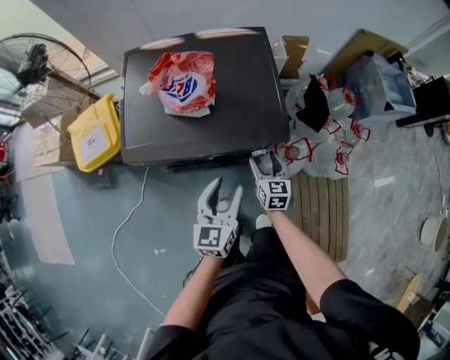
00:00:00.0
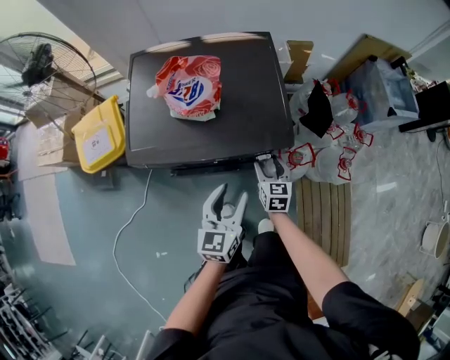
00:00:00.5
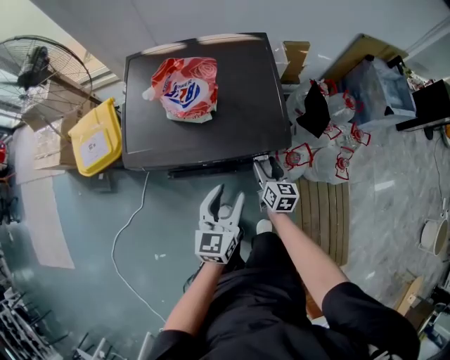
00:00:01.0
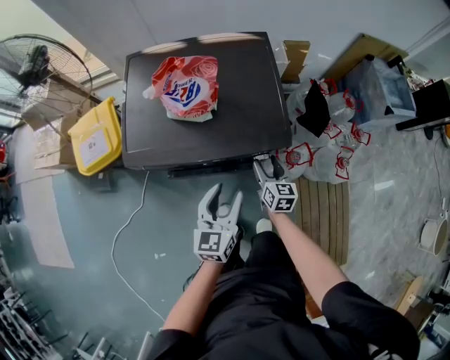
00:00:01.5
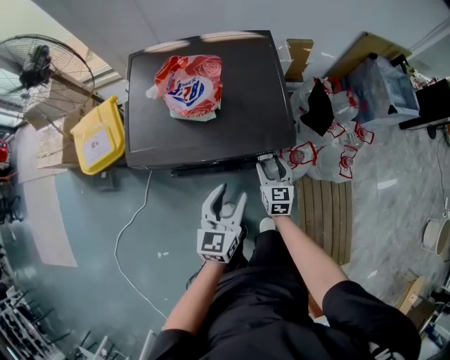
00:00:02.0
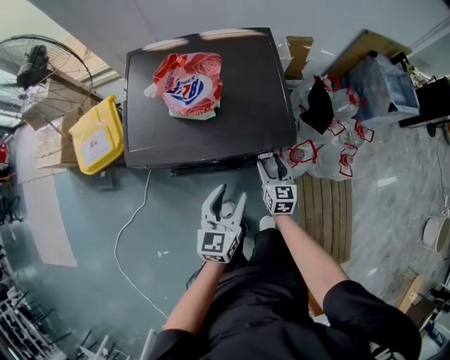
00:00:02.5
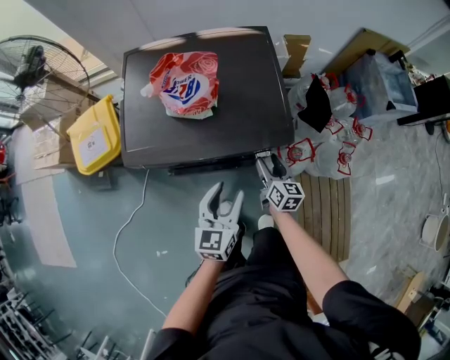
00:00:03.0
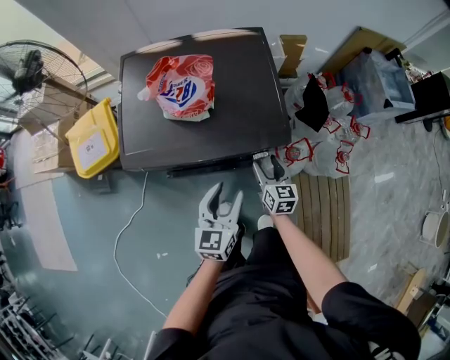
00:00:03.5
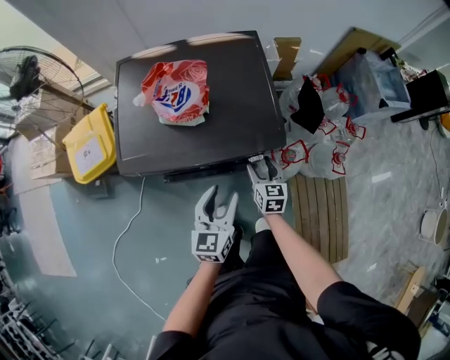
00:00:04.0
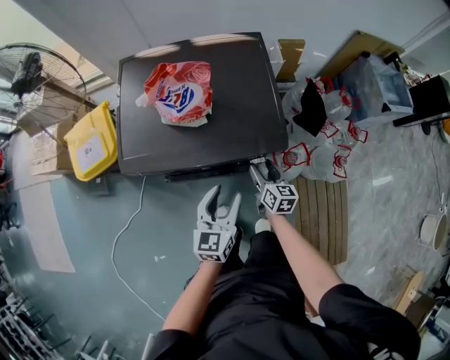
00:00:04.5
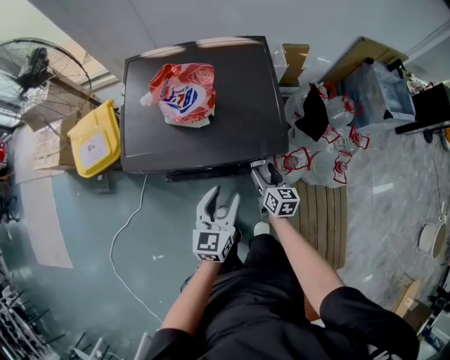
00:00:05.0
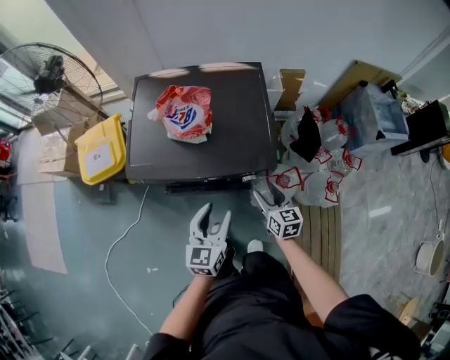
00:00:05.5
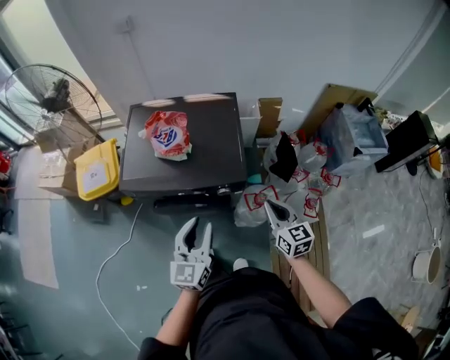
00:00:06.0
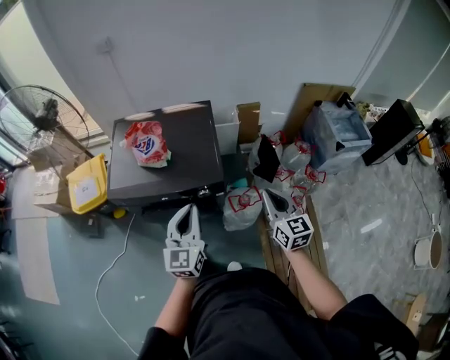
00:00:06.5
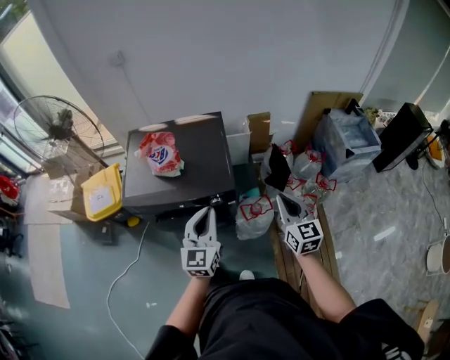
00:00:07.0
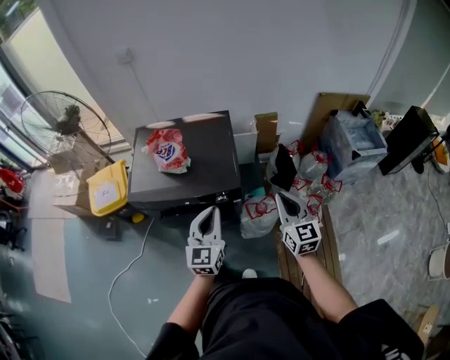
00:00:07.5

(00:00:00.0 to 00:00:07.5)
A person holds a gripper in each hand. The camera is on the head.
00:00:00.0 - 00:00:02.0: The grippers stay close to where they were, moving slightly.
00:00:04.0 - 00:00:05.5: The right gripper heads upward, covering roughly 10 cm.
00:00:05.5 - 00:00:07.5: The right gripper heads upward and to the right, covering some 30 cm, turns by some 30 degrees, and closes its fingers. Meanwhile the left gripper is displaced upward and to the right by approximately 20 cm, and closes its fingers.

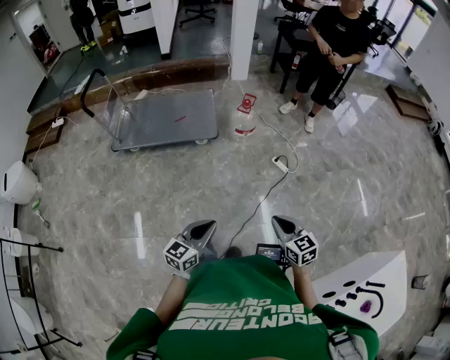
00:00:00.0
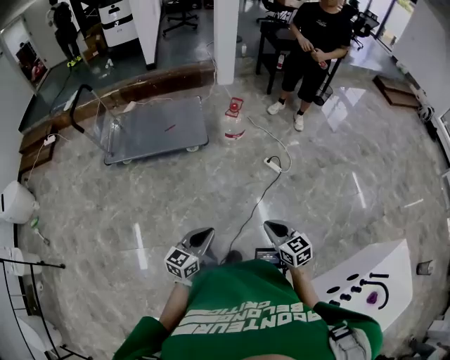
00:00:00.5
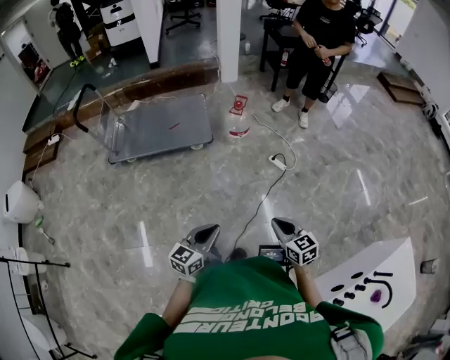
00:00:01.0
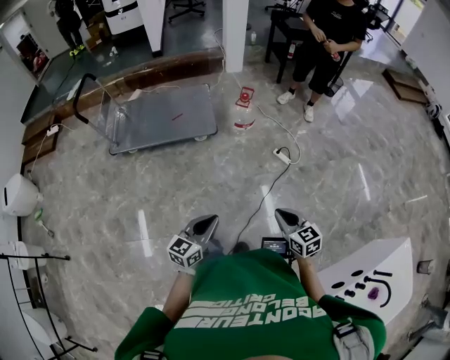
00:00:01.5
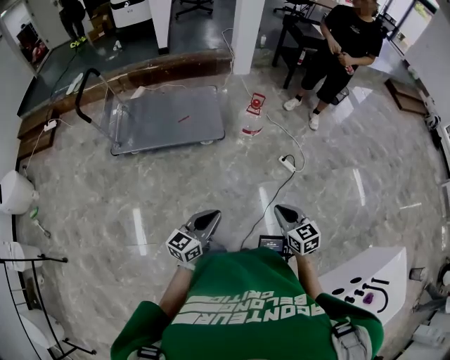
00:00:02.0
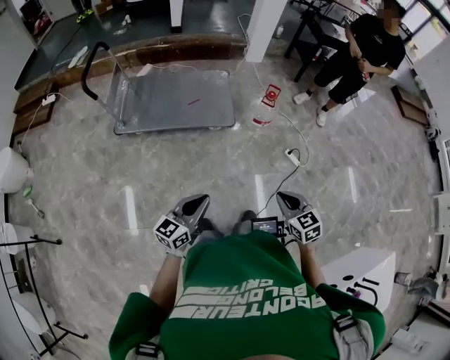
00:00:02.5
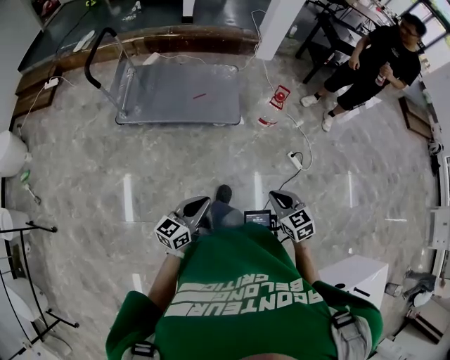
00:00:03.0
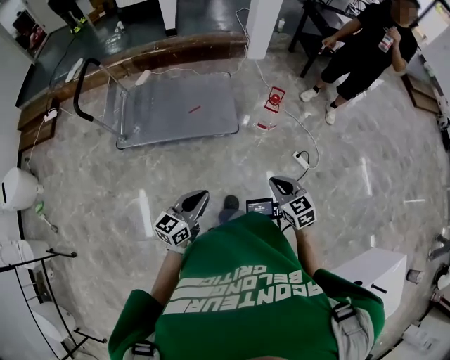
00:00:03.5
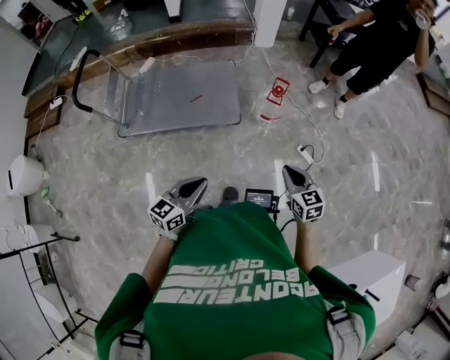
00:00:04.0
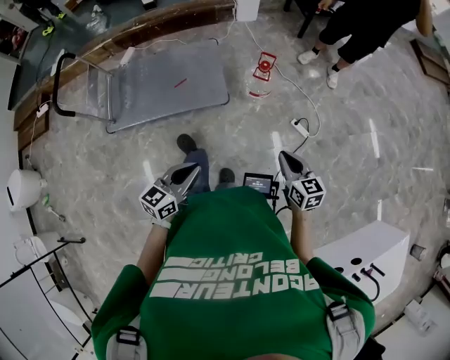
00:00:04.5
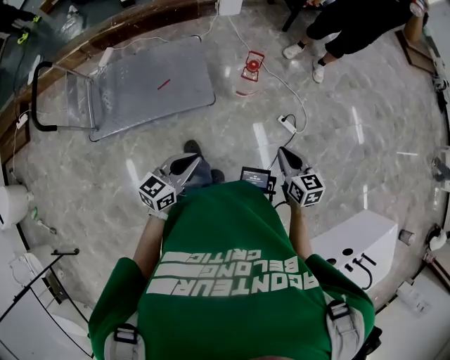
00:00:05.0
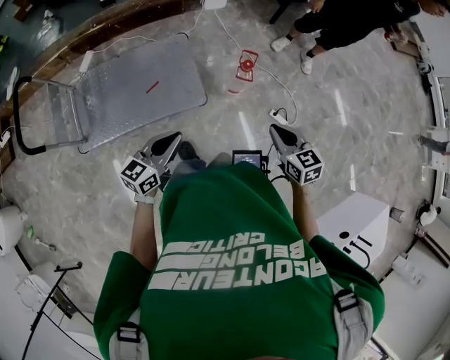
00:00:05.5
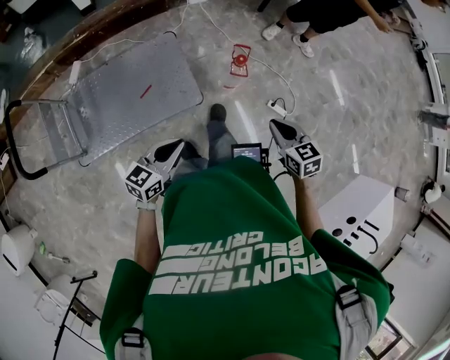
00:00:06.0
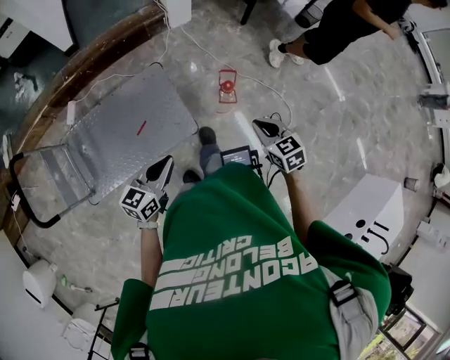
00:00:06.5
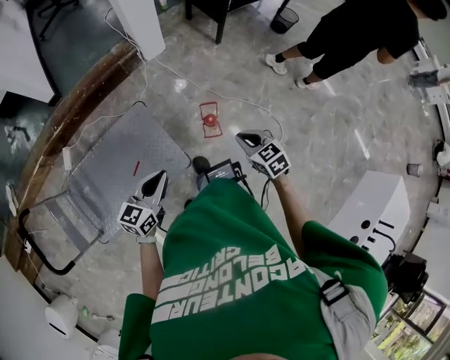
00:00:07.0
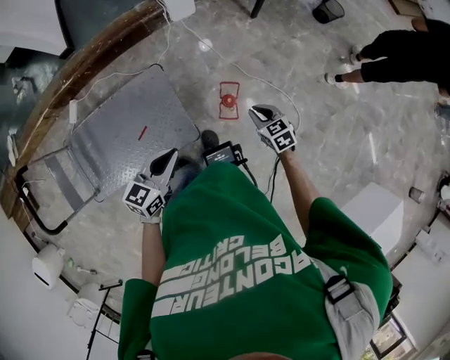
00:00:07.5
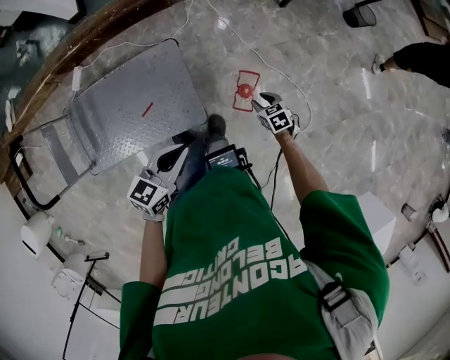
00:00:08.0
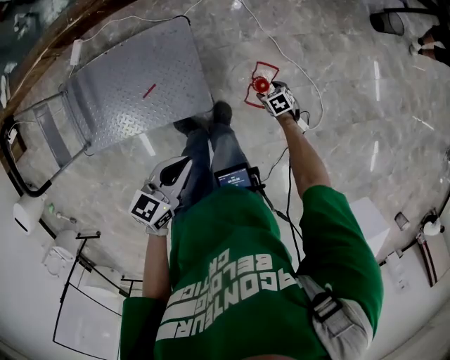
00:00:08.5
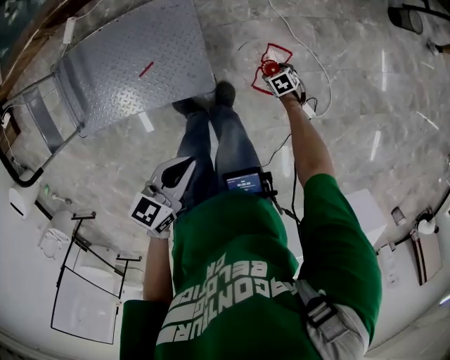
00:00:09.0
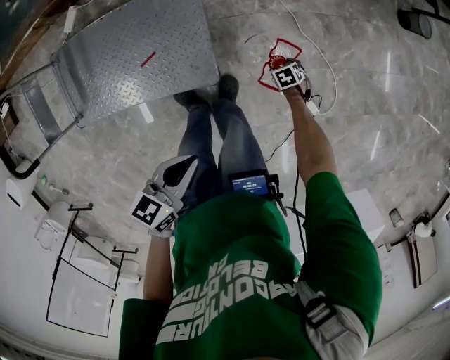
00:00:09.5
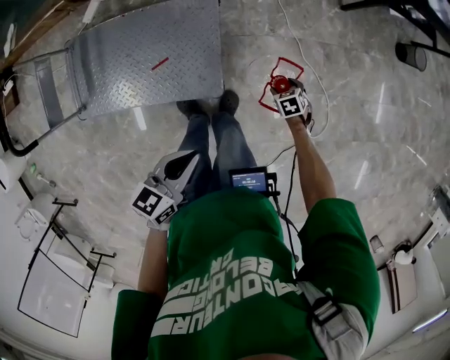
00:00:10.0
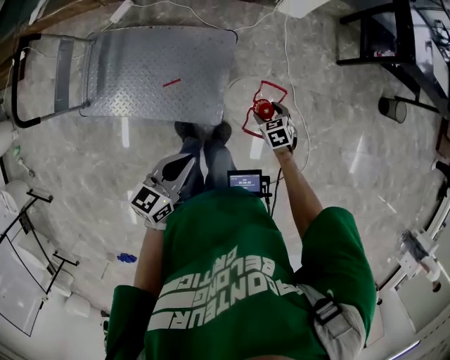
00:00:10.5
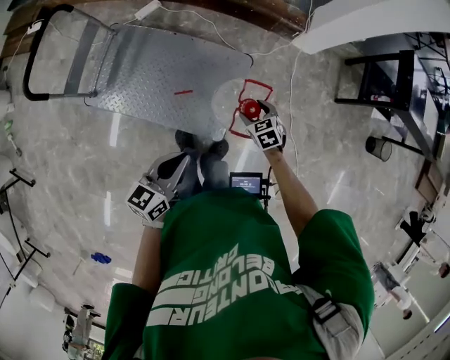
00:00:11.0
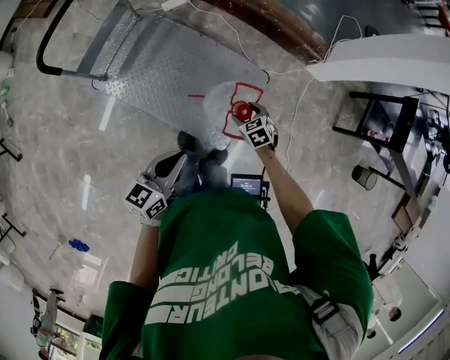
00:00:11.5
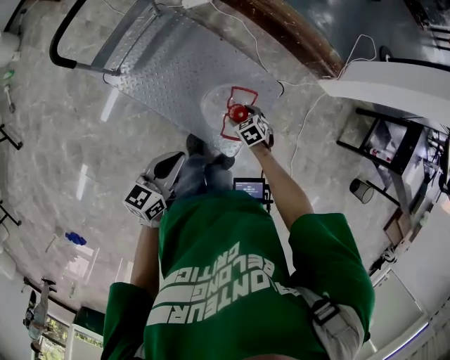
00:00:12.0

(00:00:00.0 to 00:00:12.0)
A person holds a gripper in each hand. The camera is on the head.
00:00:00.0 - 00:00:02.0: The two grippers go some 15 cm to the left and forward.
00:00:02.0 - 00:00:04.0: The two grippers go roughly 25 cm forward.
00:00:04.0 - 00:00:06.0: The grippers both shift forward and to the left by about 25 cm. The left gripper swivels approximately 20 degrees.
00:00:06.0 - 00:00:08.0: The left gripper is displaced forward by roughly 30 cm, while the right gripper goes some 50 cm forward and downward, turns by some 20 degrees, and opens.
00:00:08.0 - 00:00:10.0: The right gripper moves downward, roughly 15 cm, and opens up. The left gripper shifts about 10 cm downward, and turns by about 20 degrees.
00:00:10.0 - 00:00:12.0: The left gripper changes place by roughly 35 cm, and turns by some 40 degrees. The right gripper ends up about 50 cm from where it was, and twists some 40 degrees counterclockwise, seen from behind.

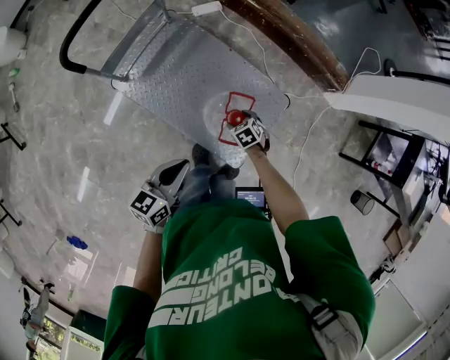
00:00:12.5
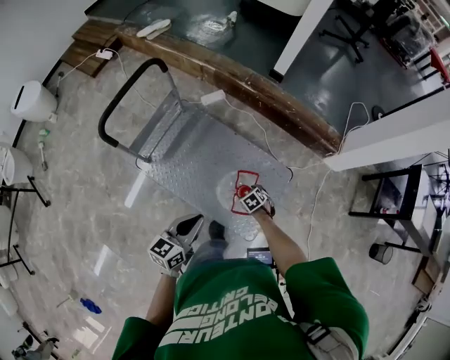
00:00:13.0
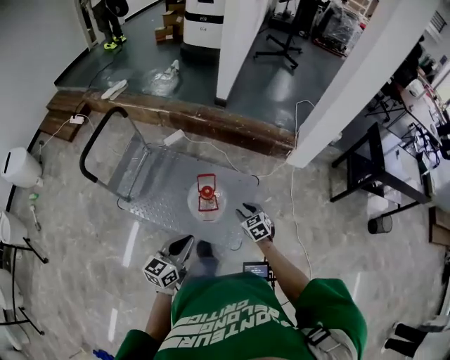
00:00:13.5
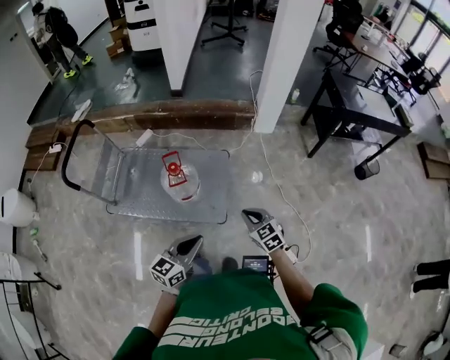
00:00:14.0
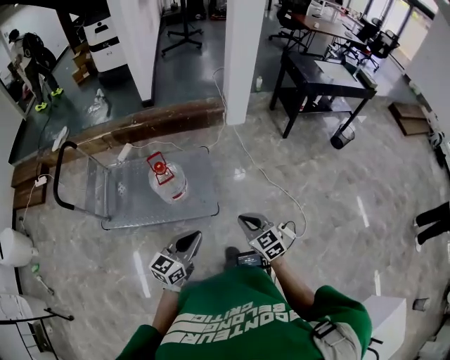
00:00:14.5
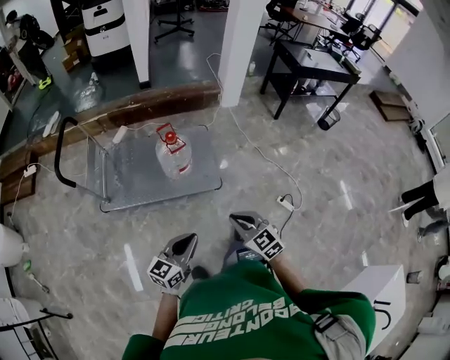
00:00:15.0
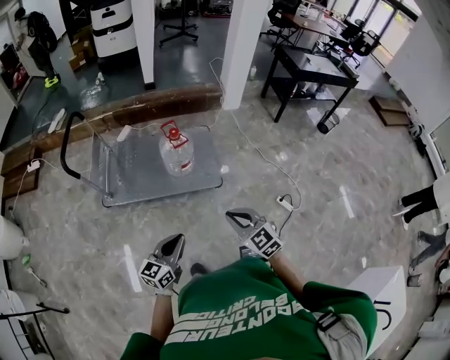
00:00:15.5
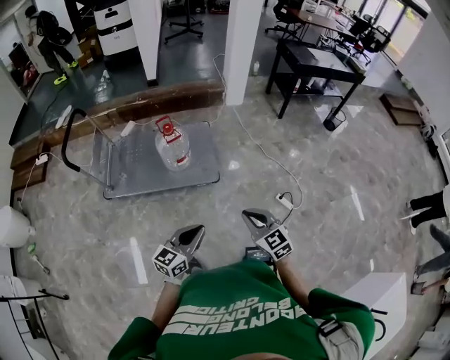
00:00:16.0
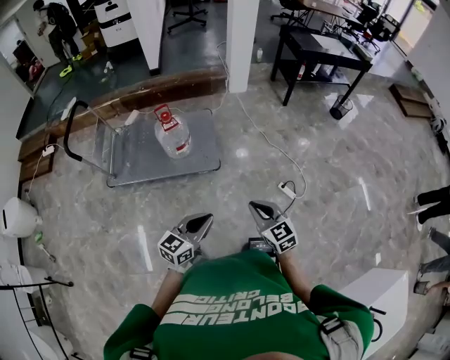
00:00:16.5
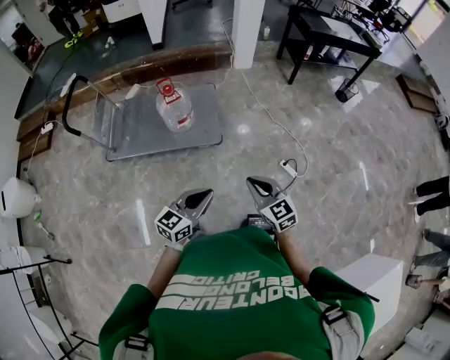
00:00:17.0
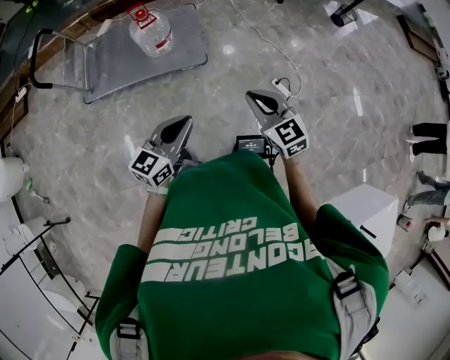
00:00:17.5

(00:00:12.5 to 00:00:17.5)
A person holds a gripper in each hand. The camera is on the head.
00:00:12.5 - 00:00:15.0: Both grippers are carried about 50 cm. The right gripper points its fingers approximately 40 degrees further upward, and closes its fingers; the left gripper rotates some 50 degrees.
00:00:15.0 - 00:00:17.5: The left gripper is displaced to the right and backward by roughly 20 cm, while the right gripper shifts approximately 20 cm to the right.

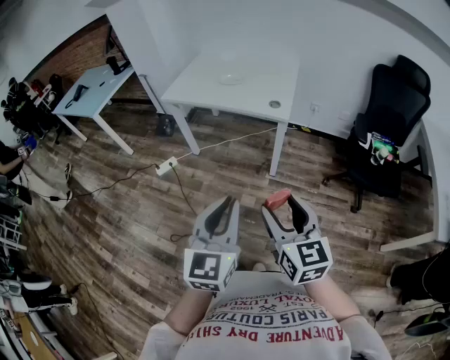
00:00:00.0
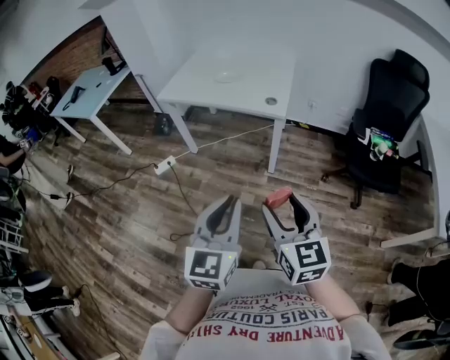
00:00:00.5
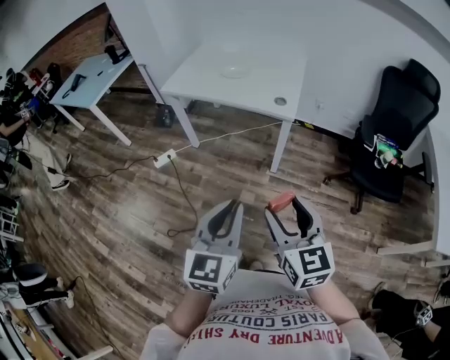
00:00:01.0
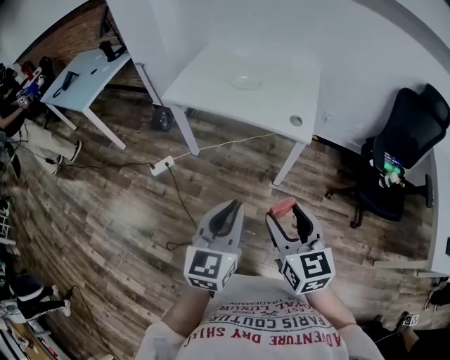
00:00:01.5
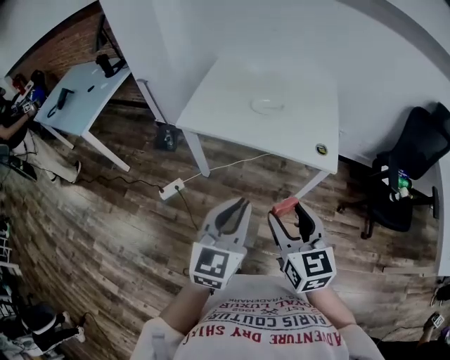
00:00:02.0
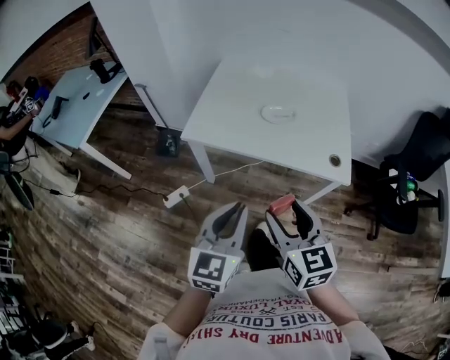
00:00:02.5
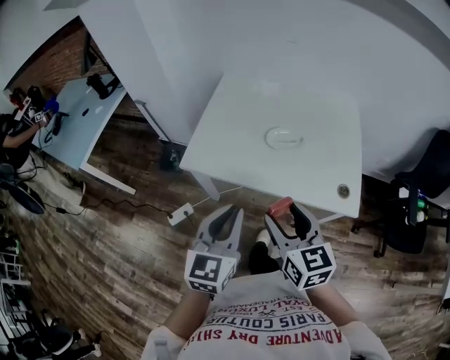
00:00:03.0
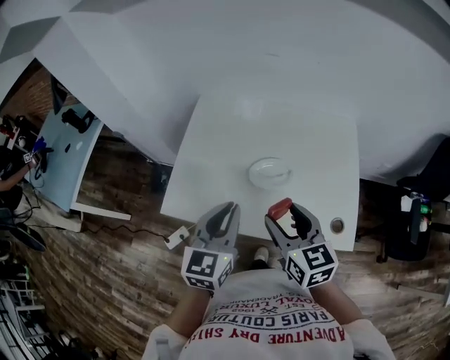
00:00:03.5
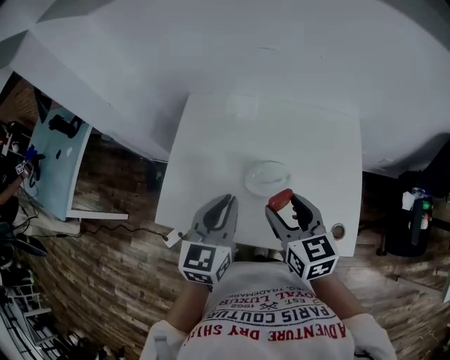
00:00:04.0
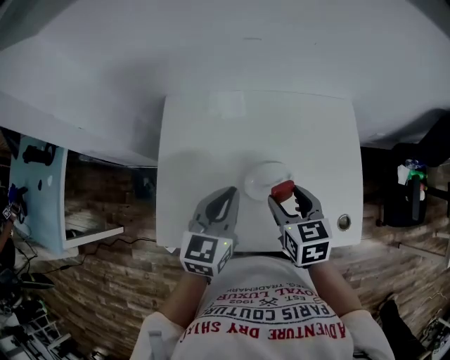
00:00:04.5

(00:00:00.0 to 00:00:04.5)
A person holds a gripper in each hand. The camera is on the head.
00:00:00.0 - 00:00:02.0: Both grippers move forward and to the left, roughly 35 cm.
00:00:02.0 - 00:00:04.5: The two grippers travel together, forward, roughly 50 cm. The right gripper swivels some 30 degrees.
